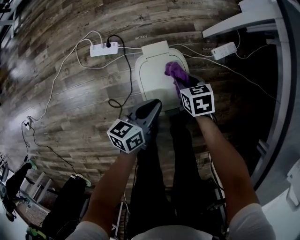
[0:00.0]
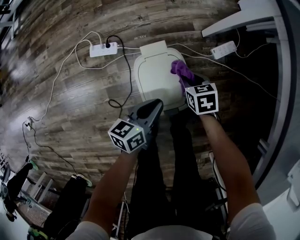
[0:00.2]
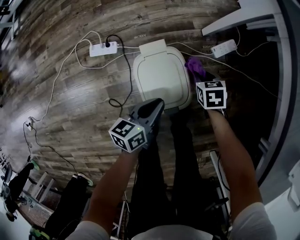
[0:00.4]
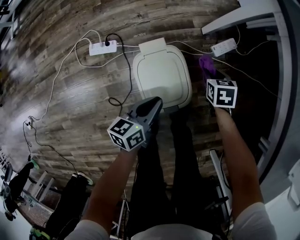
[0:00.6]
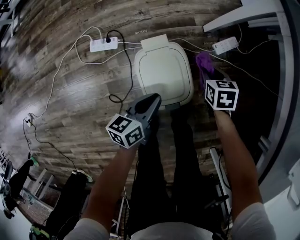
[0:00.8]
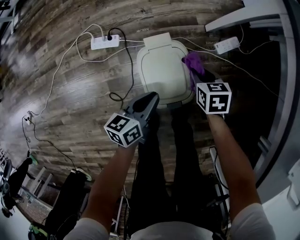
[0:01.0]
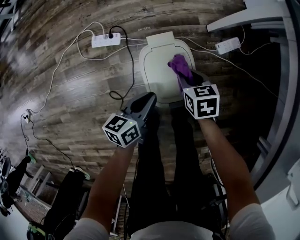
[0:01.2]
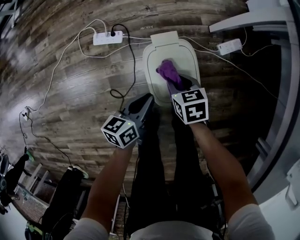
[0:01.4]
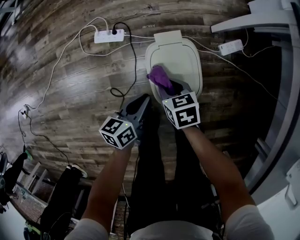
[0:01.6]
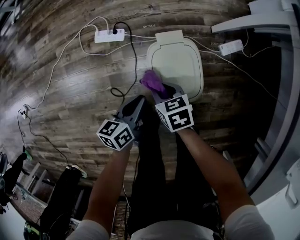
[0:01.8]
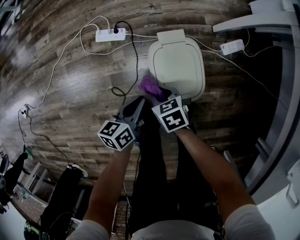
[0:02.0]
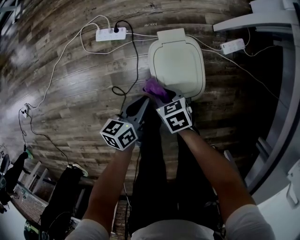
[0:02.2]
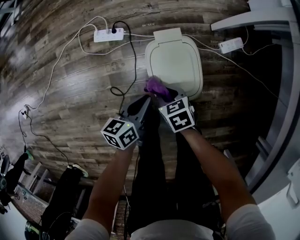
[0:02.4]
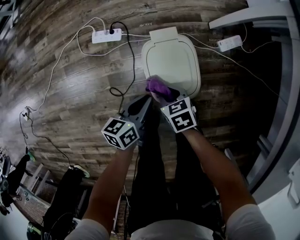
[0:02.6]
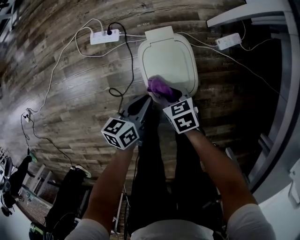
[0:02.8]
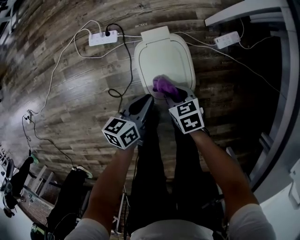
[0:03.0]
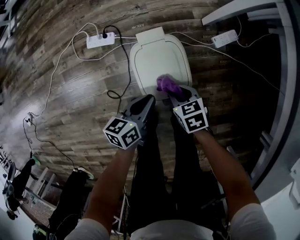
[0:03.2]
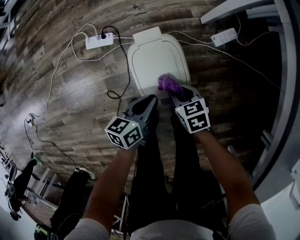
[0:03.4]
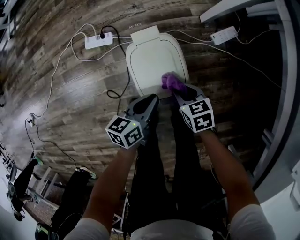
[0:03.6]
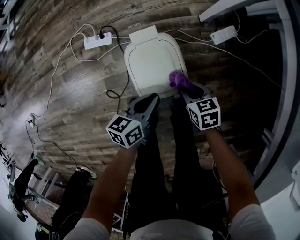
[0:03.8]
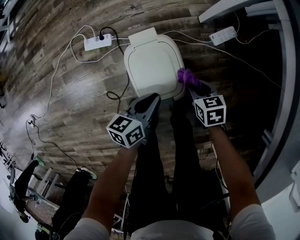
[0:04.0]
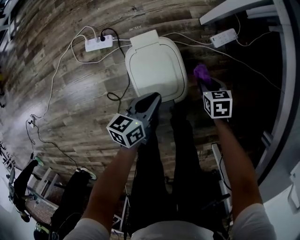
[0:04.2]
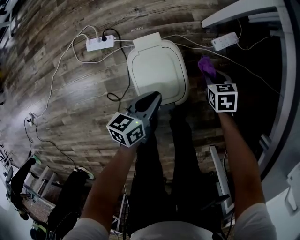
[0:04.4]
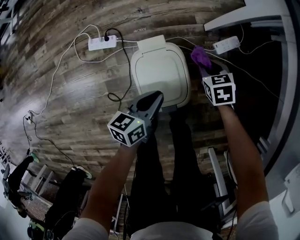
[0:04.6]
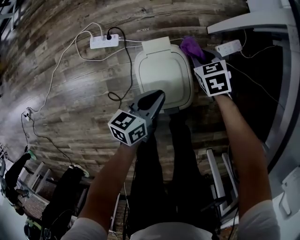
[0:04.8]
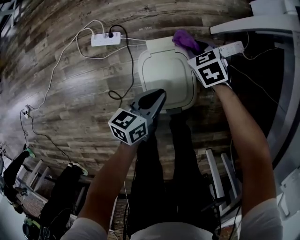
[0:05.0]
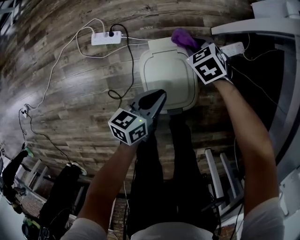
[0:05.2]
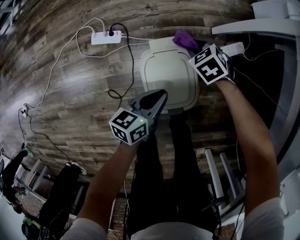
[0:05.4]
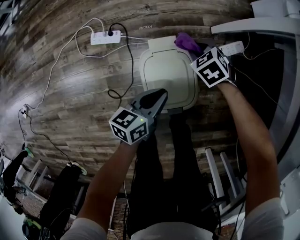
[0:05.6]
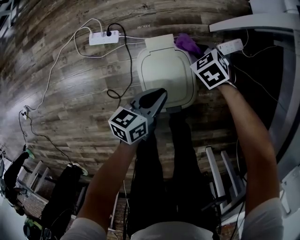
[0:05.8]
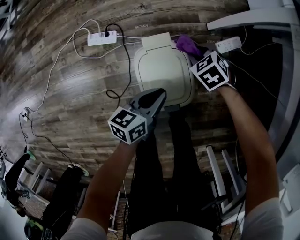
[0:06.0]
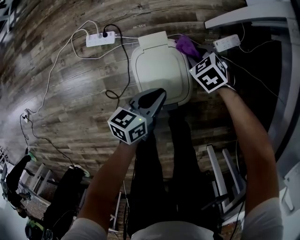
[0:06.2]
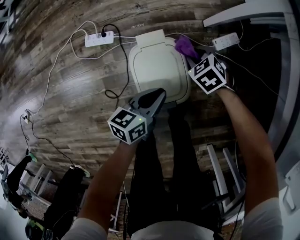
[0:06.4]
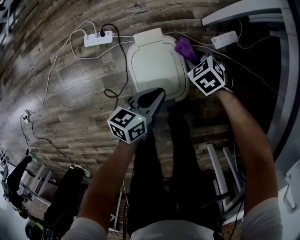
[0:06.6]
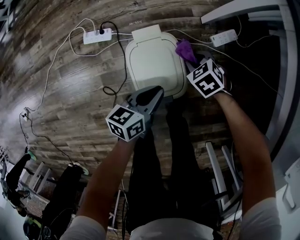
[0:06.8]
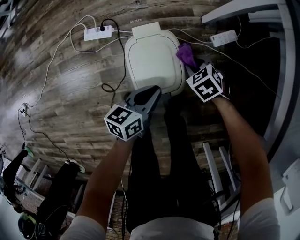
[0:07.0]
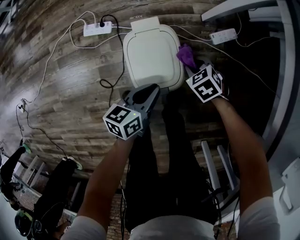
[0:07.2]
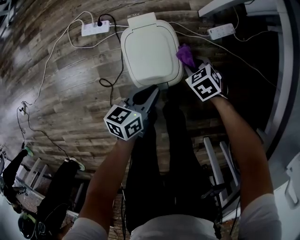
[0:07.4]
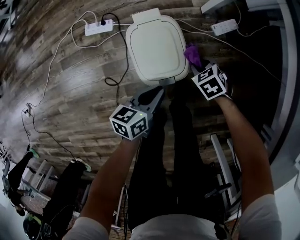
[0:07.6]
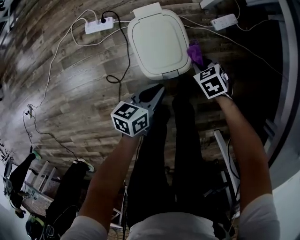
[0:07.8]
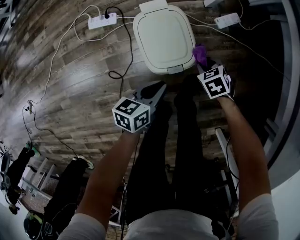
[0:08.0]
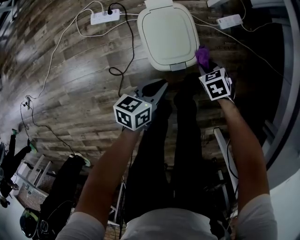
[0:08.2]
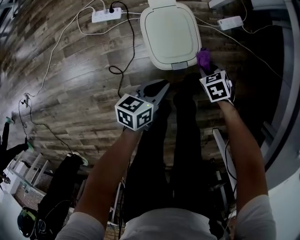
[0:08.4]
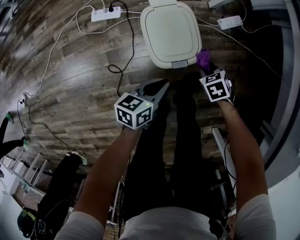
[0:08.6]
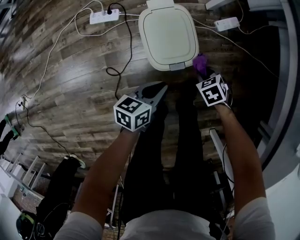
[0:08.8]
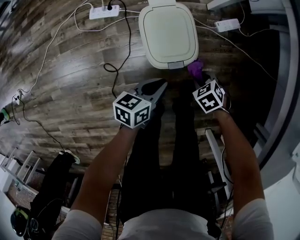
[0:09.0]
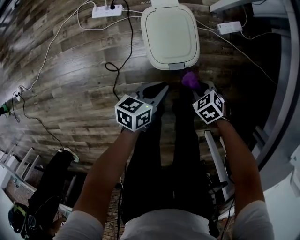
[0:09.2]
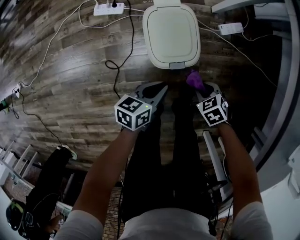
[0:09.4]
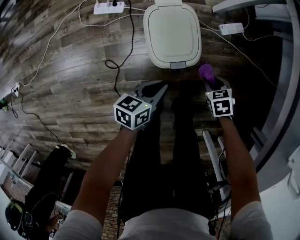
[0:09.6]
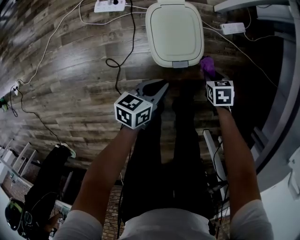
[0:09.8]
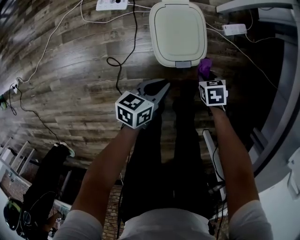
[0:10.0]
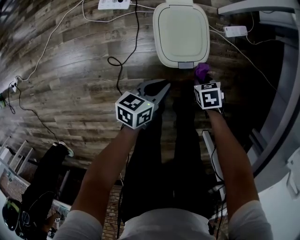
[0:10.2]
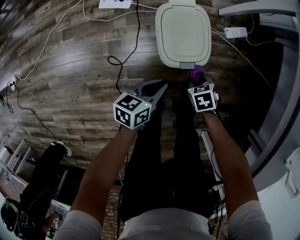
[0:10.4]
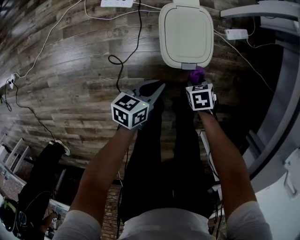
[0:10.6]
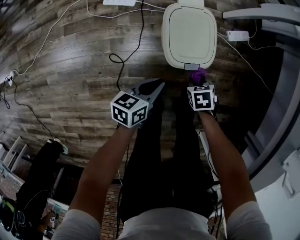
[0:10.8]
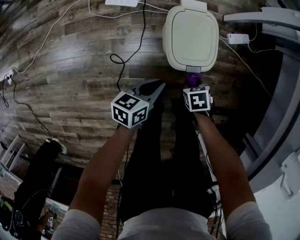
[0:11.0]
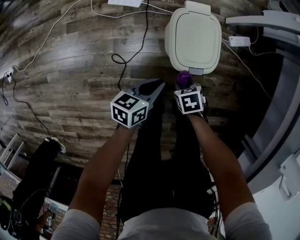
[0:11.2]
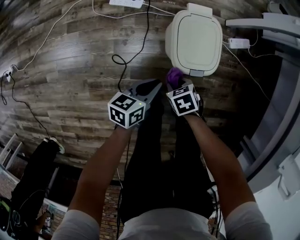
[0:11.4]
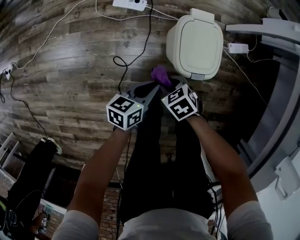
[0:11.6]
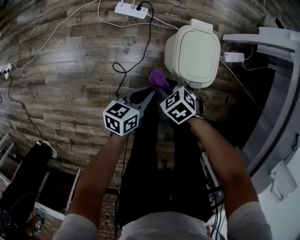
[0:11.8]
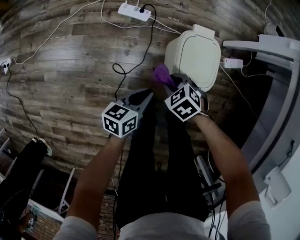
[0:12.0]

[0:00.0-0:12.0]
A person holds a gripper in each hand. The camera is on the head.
0:00.0 to 0:01.6: The left gripper changes place by some 10 cm. The right gripper ends up some 15 cm from where it was.
0:01.6 to 0:03.0: The right gripper goes roughly 5 cm backward and to the right.
0:03.0 to 0:04.4: The left gripper goes some 5 cm to the right. Meanwhile the right gripper travels to the right and forward by approximately 20 cm.
0:04.4 to 0:06.0: The right gripper travels to the left and forward by roughly 15 cm, and turns by some 40 degrees.
0:06.0 to 0:07.6: The right gripper heads backward, covering approximately 15 cm; the left gripper is displaced backward by roughly 10 cm.
0:07.6 to 0:09.0: The right gripper shifts by about 10 cm; the left gripper ends up some 5 cm from where it was.
0:09.0 to 0:10.4: The right gripper shifts by roughly 5 cm.
0:10.4 to 0:12.0: The left gripper changes place by some 10 cm, while the right gripper moves about 20 cm, and turns by some 40 degrees.

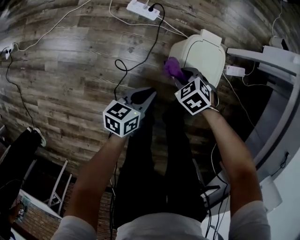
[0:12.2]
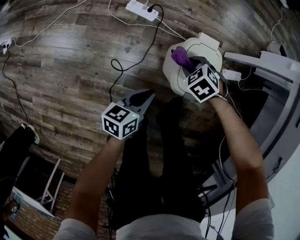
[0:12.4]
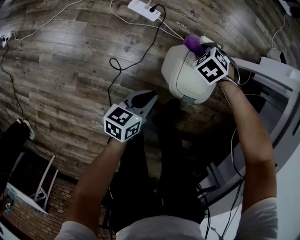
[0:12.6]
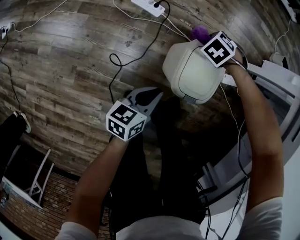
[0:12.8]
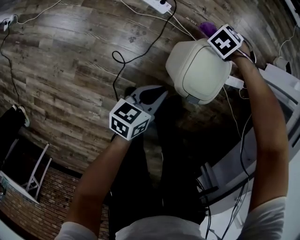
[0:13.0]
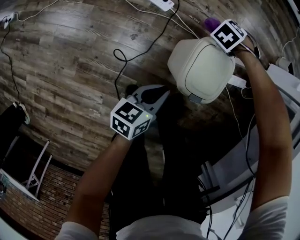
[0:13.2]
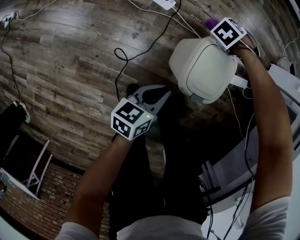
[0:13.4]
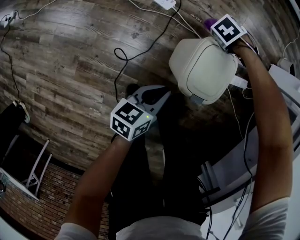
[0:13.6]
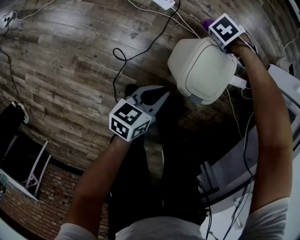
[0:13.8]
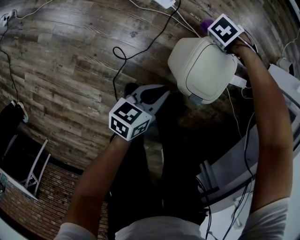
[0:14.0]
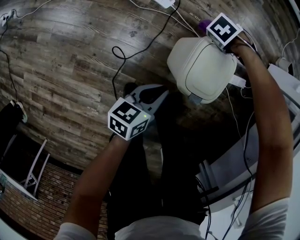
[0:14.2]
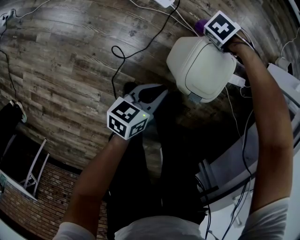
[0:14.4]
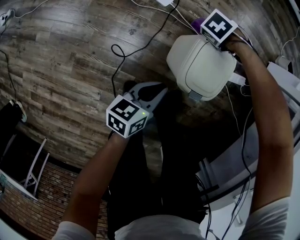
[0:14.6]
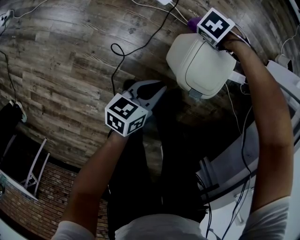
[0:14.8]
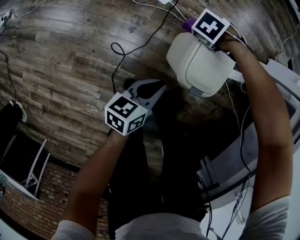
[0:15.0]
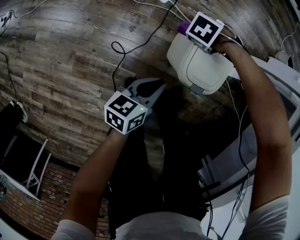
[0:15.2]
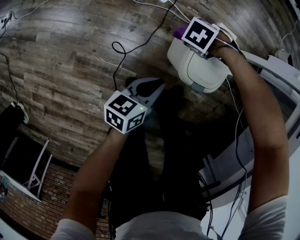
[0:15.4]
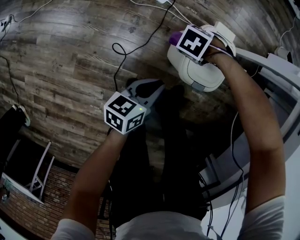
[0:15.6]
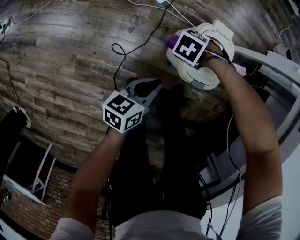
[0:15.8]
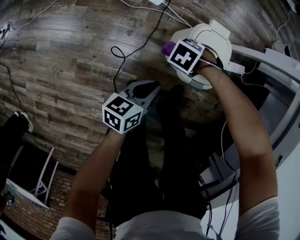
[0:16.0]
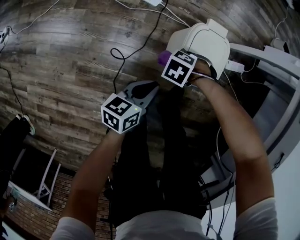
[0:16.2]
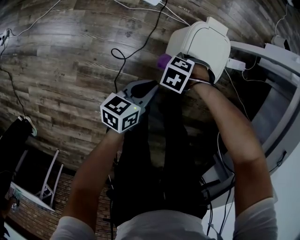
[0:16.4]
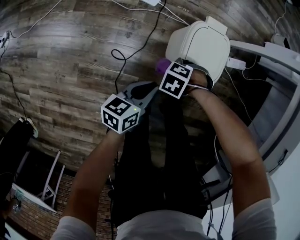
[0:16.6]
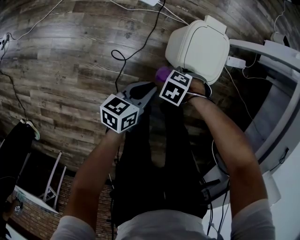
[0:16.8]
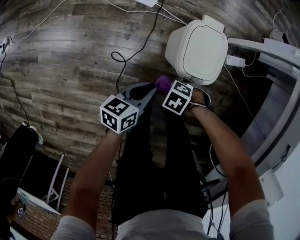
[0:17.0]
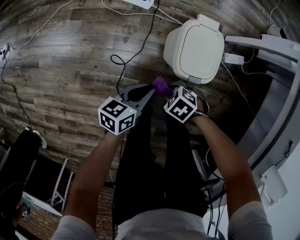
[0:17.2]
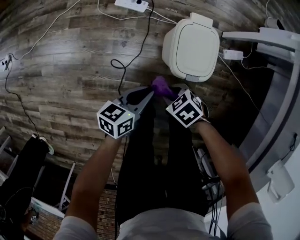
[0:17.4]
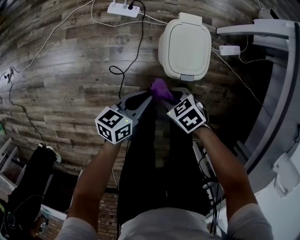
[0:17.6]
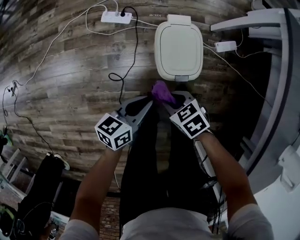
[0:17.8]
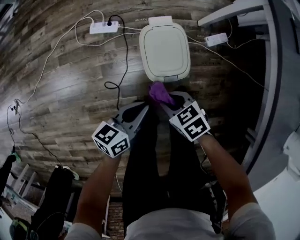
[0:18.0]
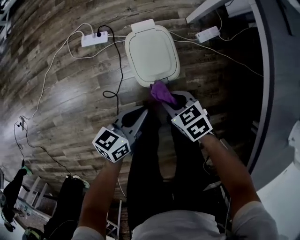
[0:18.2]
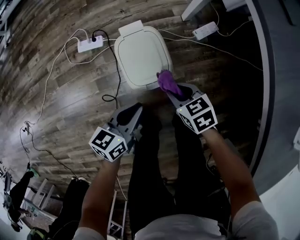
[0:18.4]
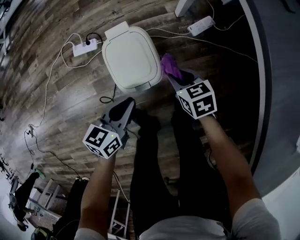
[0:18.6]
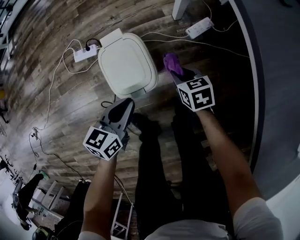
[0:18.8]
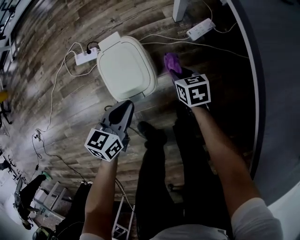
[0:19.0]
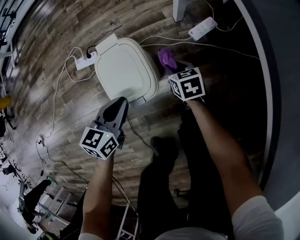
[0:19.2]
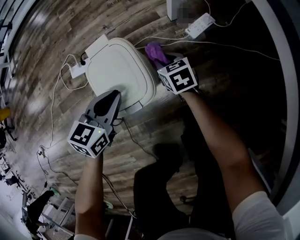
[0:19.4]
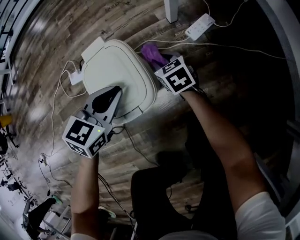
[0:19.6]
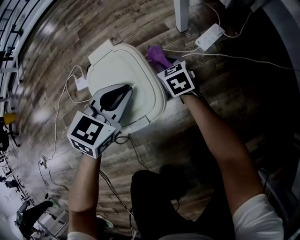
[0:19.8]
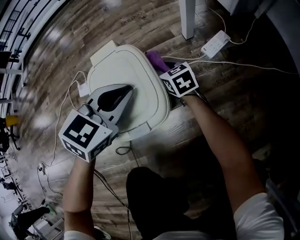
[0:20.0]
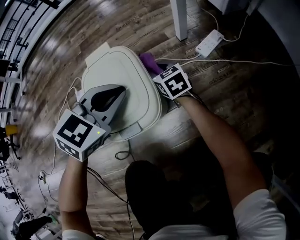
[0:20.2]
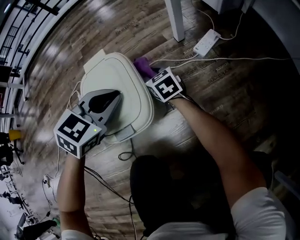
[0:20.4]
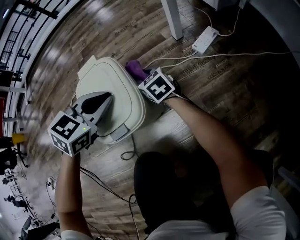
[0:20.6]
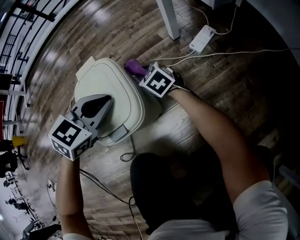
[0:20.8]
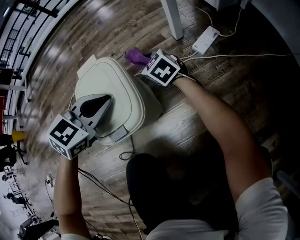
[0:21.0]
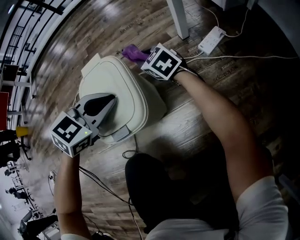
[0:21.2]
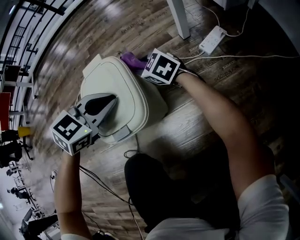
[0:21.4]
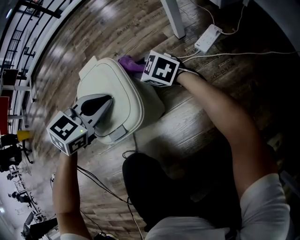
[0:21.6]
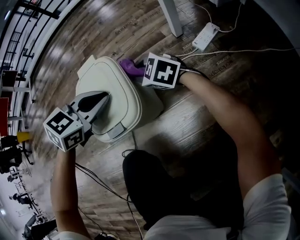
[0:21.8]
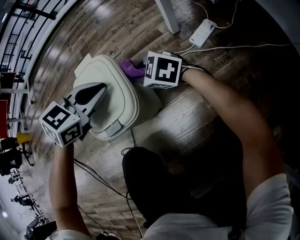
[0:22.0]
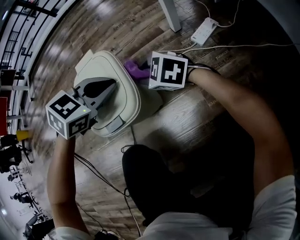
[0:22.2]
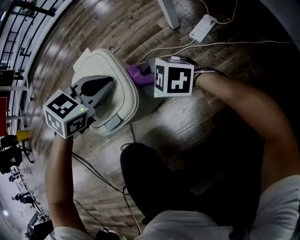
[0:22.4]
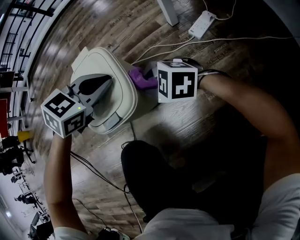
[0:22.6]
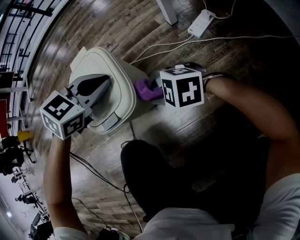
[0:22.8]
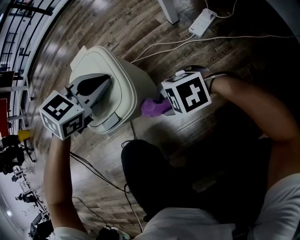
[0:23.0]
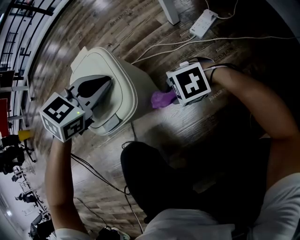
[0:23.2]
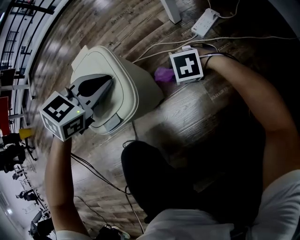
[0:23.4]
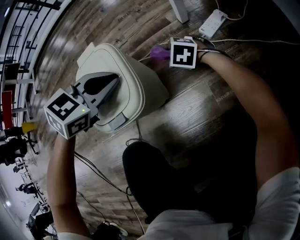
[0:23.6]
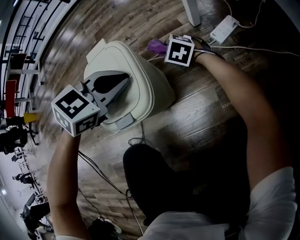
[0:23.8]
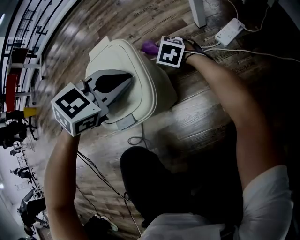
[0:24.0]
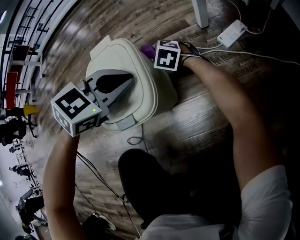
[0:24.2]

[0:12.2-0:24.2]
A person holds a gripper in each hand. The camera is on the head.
0:12.2 to 0:13.8: The right gripper ends up about 25 cm from where it was, and changes its angle by about 30 degrees.
0:13.8 to 0:15.2: The right gripper ends up approximately 10 cm from where it was.
0:15.2 to 0:16.6: The right gripper moves roughly 20 cm.
0:16.6 to 0:18.2: The left gripper moves roughly 15 cm, and turns by approximately 20 degrees, while the right gripper moves upward, approximately 15 cm, and changes its angle by roughly 70 degrees.
0:18.2 to 0:19.8: The left gripper travels forward, downward and to the right by roughly 25 cm, and twists about 50 degrees clockwise, seen from behind. Meanwhile the right gripper goes roughly 35 cm downward and forward, and swivels approximately 30 degrees.
0:19.8 to 0:21.2: The right gripper moves to the left, about 5 cm, and turns by approximately 30 degrees, while the left gripper moves some 5 cm.
0:21.2 to 0:22.6: The right gripper moves some 20 cm, and turns by about 30 degrees.
0:22.6 to 0:24.2: The right gripper shifts by roughly 20 cm.
